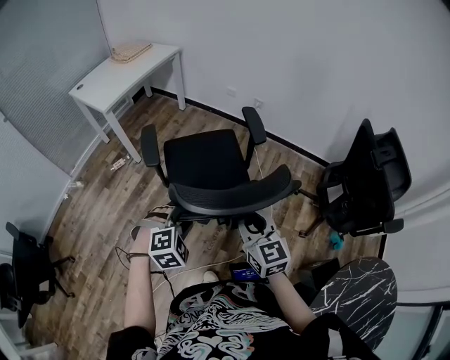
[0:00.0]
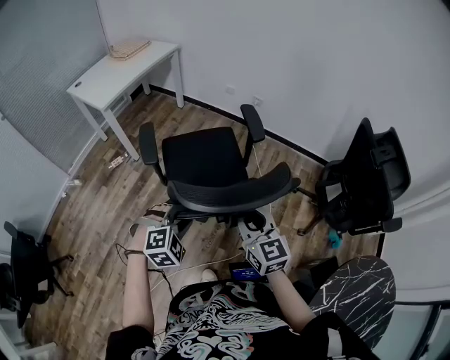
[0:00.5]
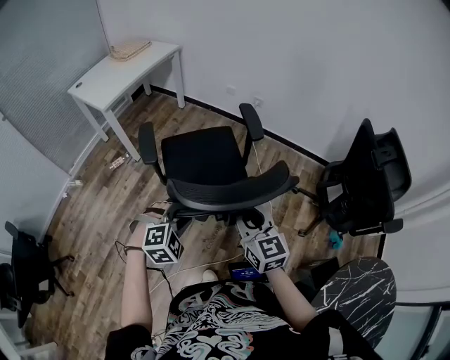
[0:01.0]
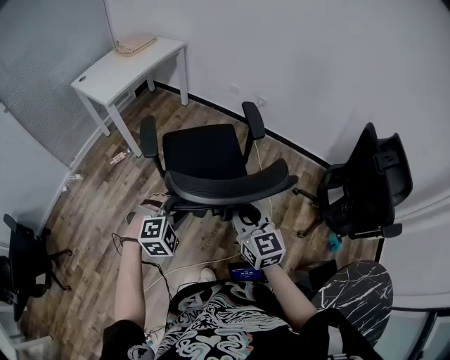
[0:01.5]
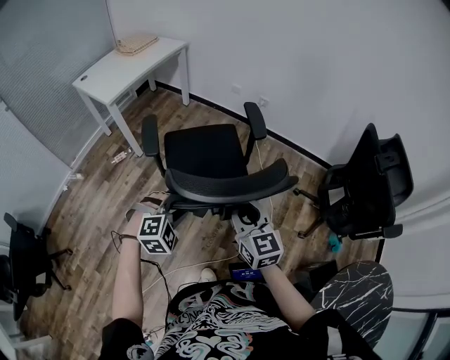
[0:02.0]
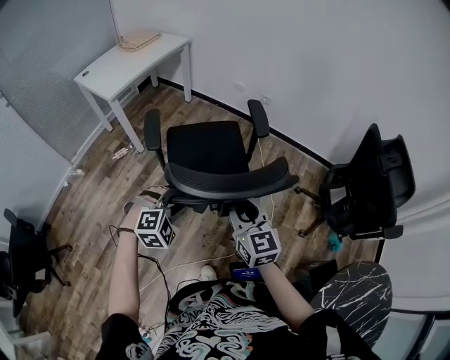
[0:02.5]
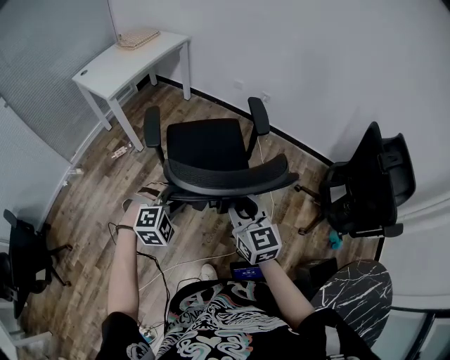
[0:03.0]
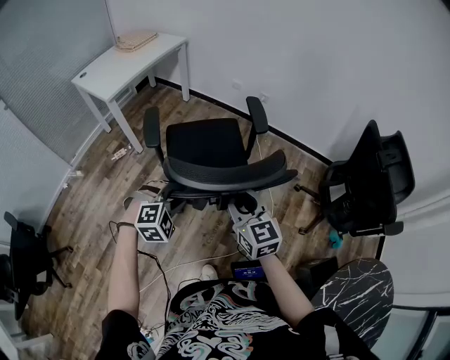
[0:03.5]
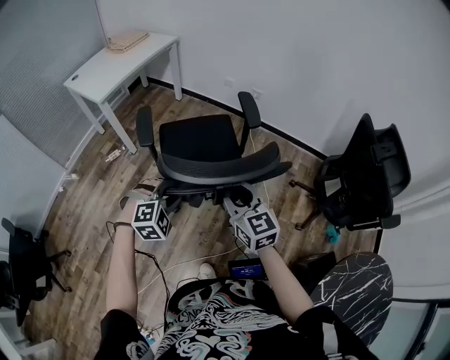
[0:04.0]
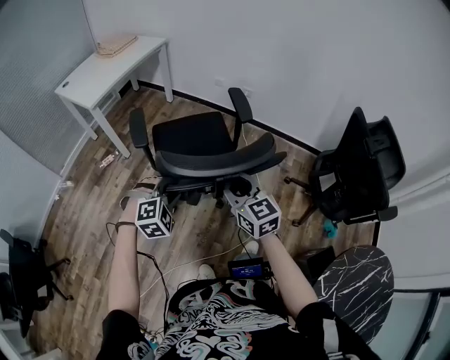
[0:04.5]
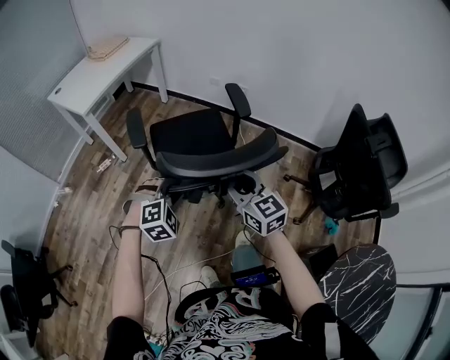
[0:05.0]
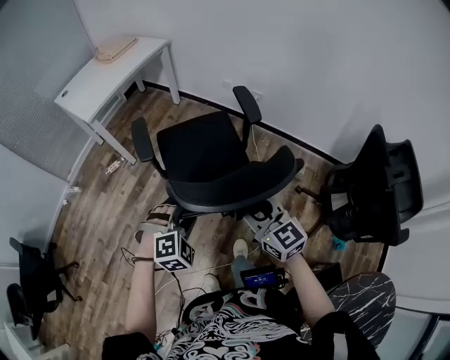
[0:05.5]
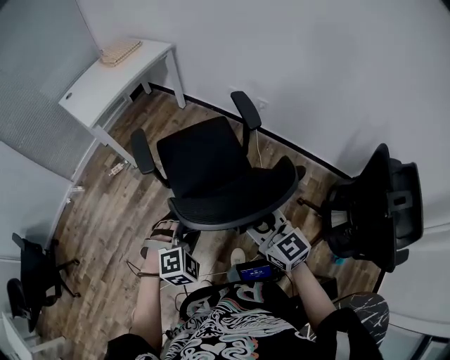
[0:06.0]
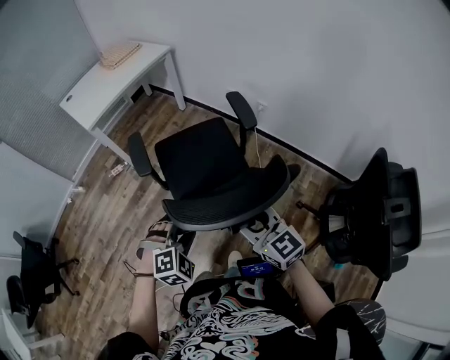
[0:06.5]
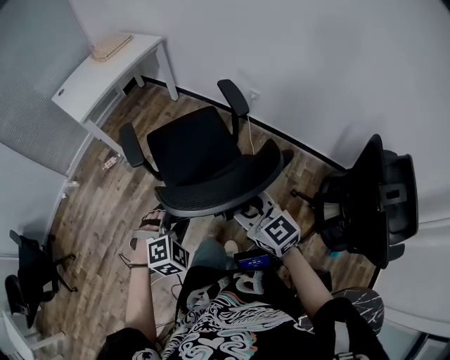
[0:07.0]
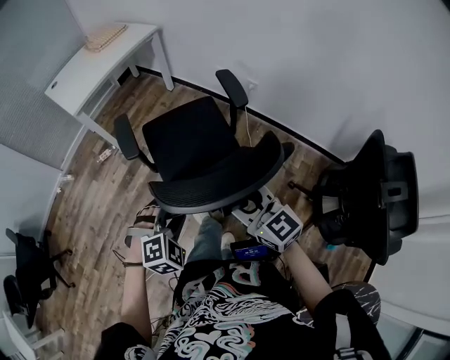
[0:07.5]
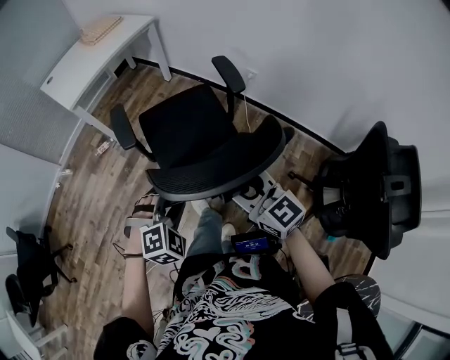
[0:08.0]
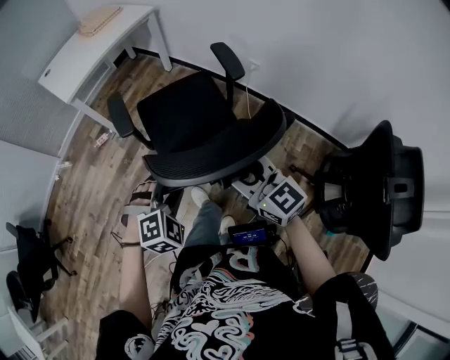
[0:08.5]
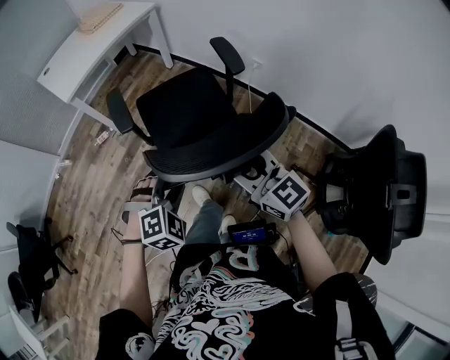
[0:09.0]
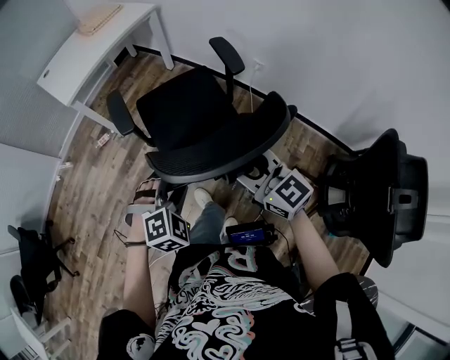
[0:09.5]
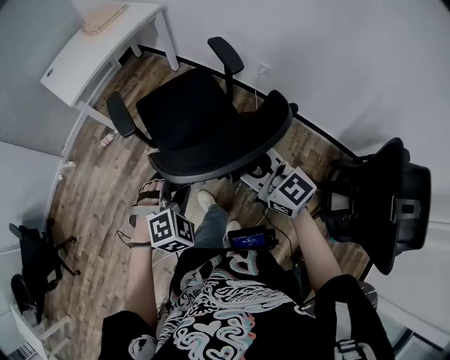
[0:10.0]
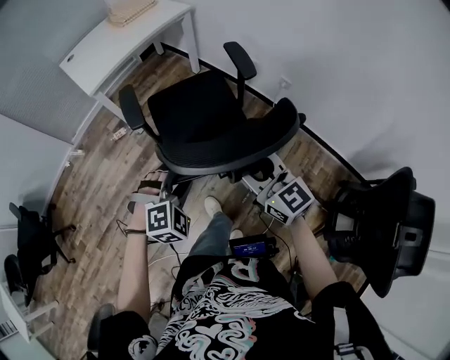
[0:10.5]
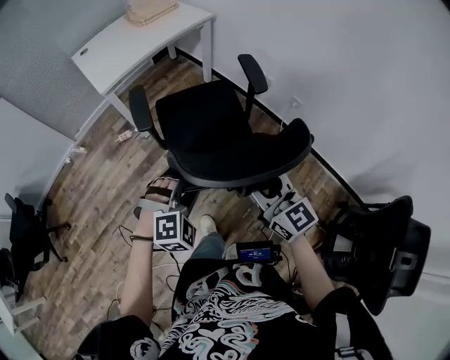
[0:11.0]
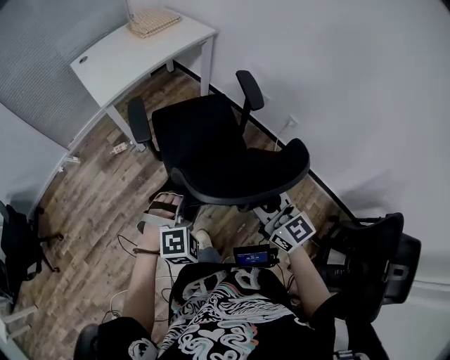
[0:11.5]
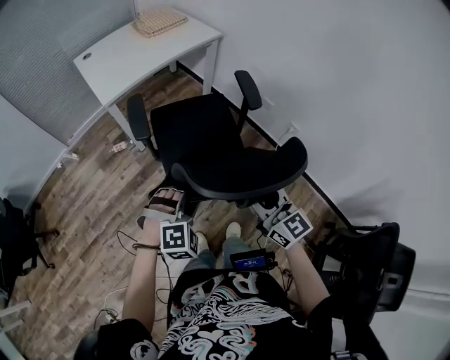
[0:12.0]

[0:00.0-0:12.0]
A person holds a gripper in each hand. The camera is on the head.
0:00.0 to 0:02.0: The grippers move only a little.
0:02.0 to 0:04.0: The grippers stay close to where they were, moving slightly.
0:04.0 to 0:06.0: The two grippers go roughly 15 cm to the right and forward.
0:06.0 to 0:08.0: The grippers move only a little.
0:08.0 to 0:10.0: The grippers both shift forward by some 10 cm.
0:10.0 to 0:12.0: The grippers both shift forward and to the left by approximately 15 cm.

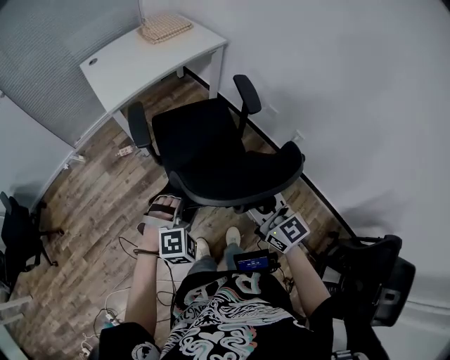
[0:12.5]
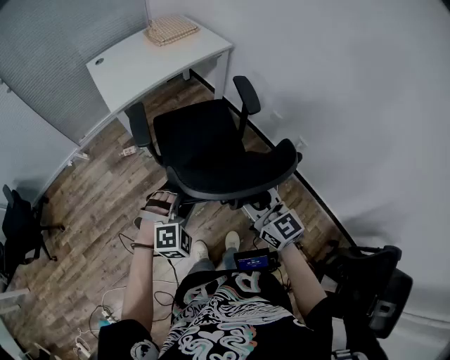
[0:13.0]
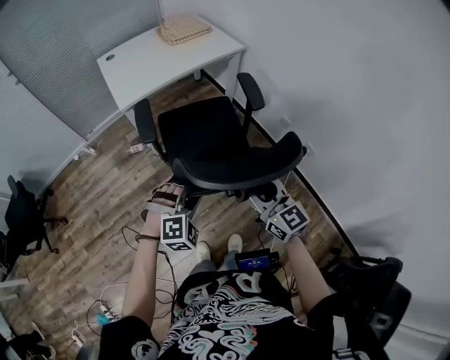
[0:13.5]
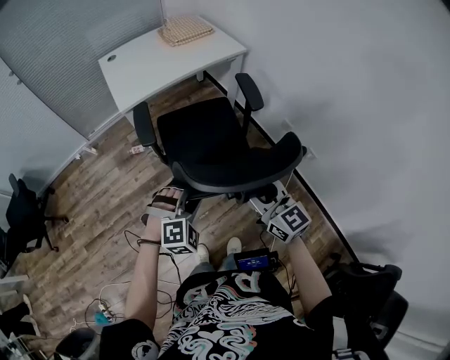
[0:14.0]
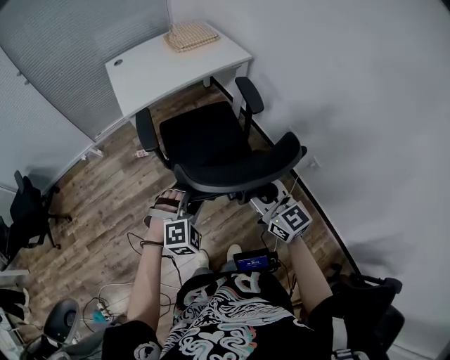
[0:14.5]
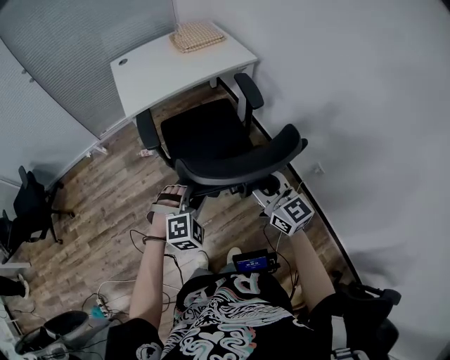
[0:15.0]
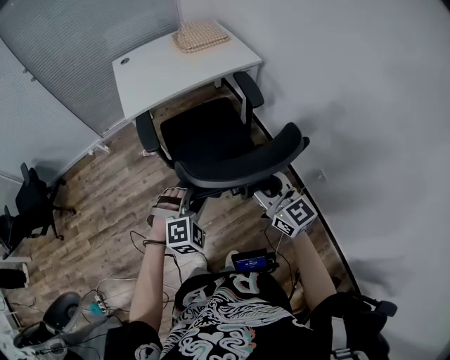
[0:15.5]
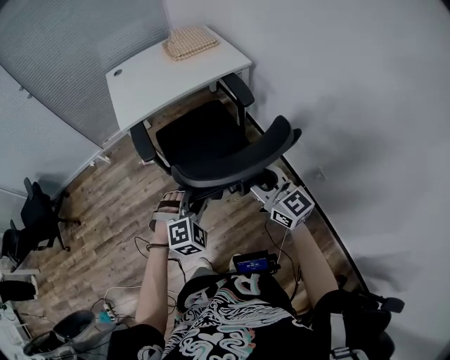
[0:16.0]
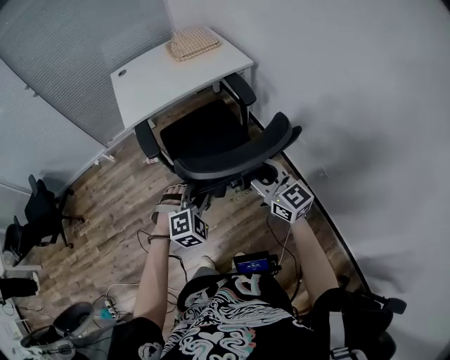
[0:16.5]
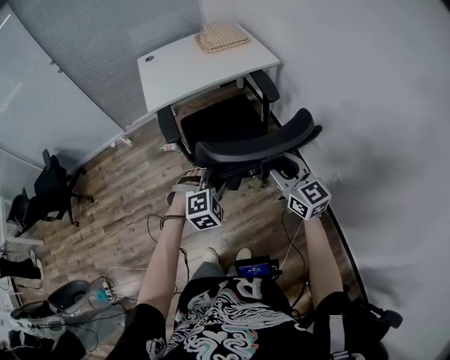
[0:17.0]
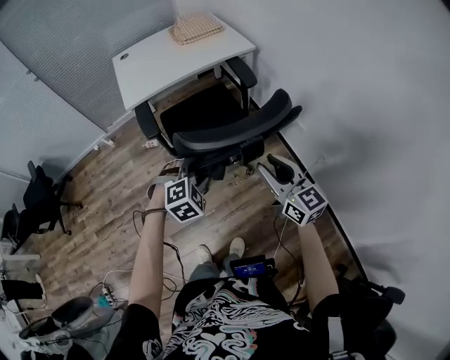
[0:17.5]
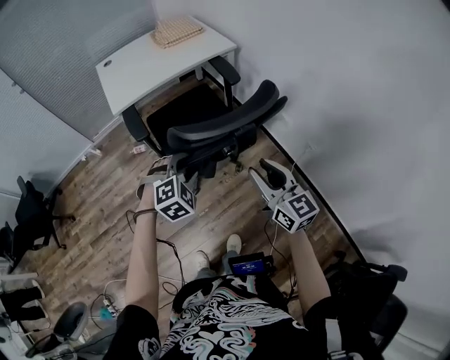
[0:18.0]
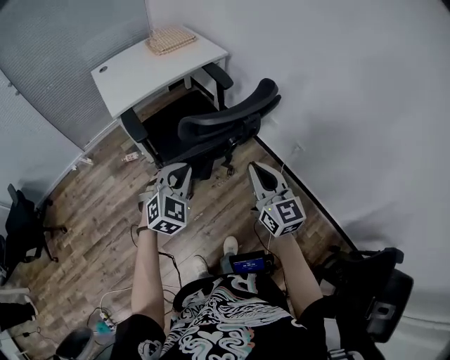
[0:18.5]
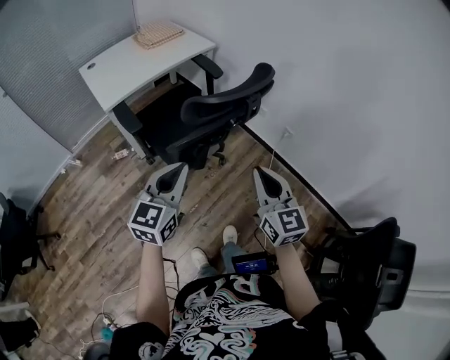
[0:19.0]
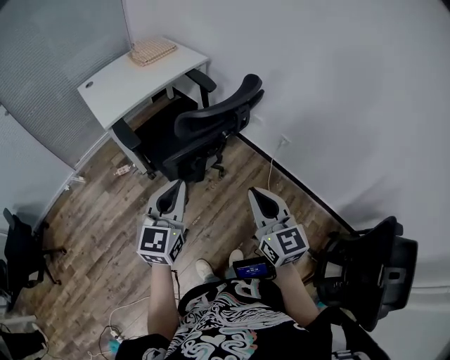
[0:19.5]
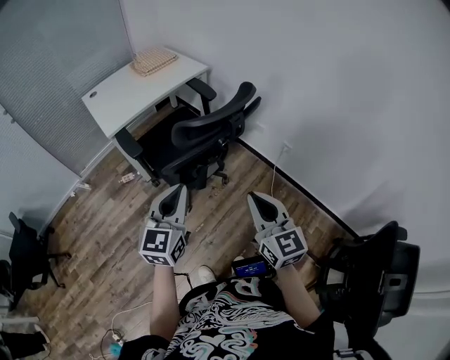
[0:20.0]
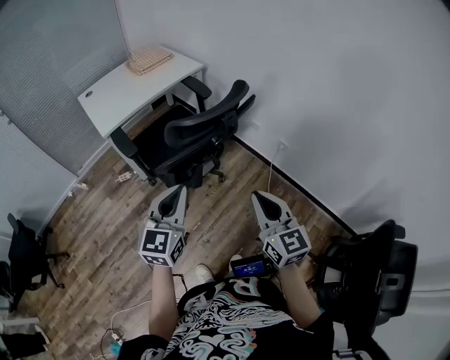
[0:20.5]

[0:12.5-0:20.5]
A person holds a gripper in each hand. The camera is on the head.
0:12.5 to 0:14.5: The grippers both shift forward by some 10 cm.
0:14.5 to 0:16.5: The right gripper is displaced forward and to the right by approximately 10 cm. The left gripper heads to the right and forward, covering approximately 10 cm.
0:16.5 to 0:18.5: The right gripper heads backward, covering some 15 cm, rotates about 30 degrees, and closes its fingers, while the left gripper heads upward, to the left and backward, covering some 15 cm, swivels some 30 degrees, and closes up.
0:18.5 to 0:20.5: The right gripper heads backward, covering roughly 10 cm, while the left gripper shifts about 10 cm backward and upward, and turns by approximately 40 degrees.

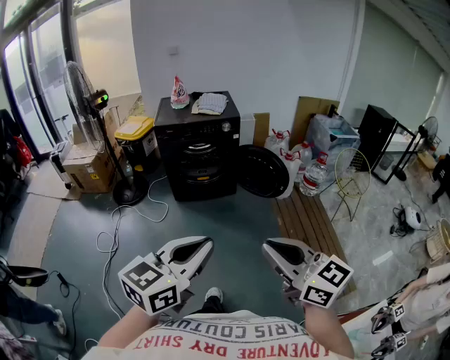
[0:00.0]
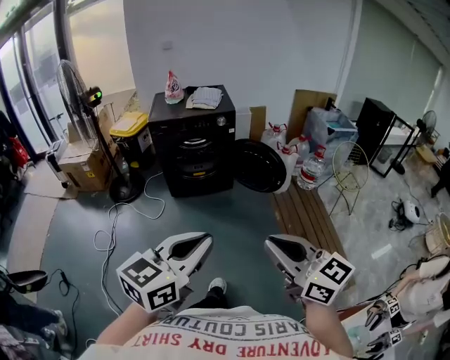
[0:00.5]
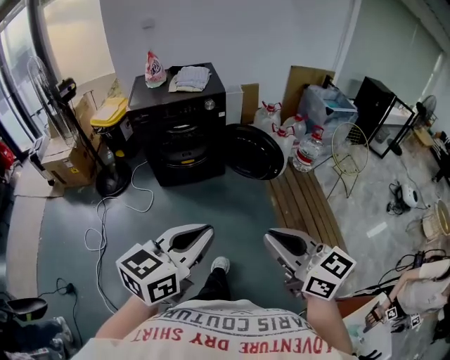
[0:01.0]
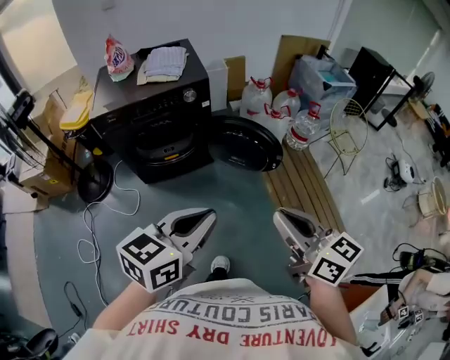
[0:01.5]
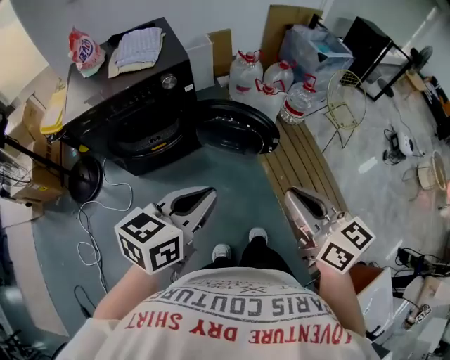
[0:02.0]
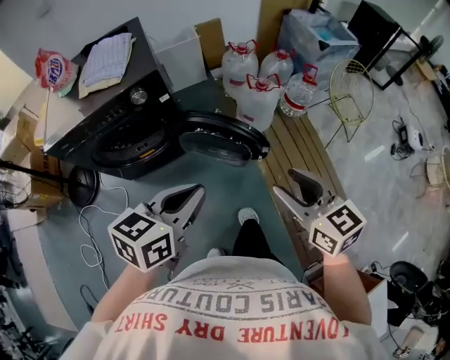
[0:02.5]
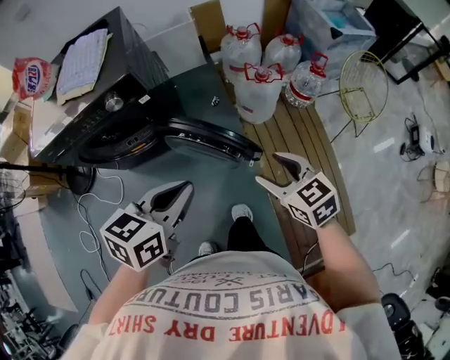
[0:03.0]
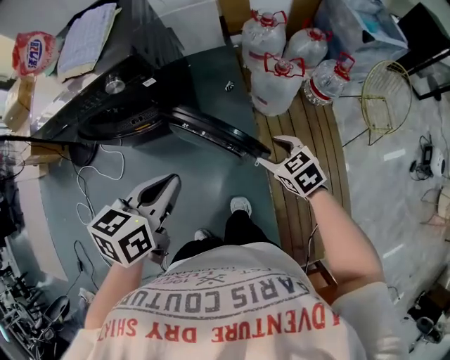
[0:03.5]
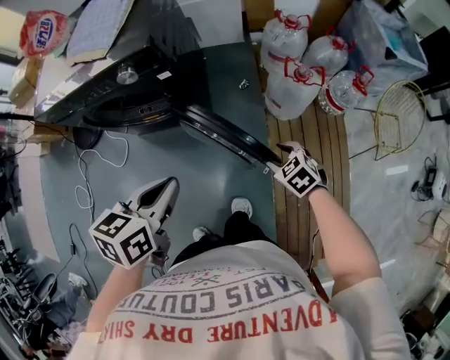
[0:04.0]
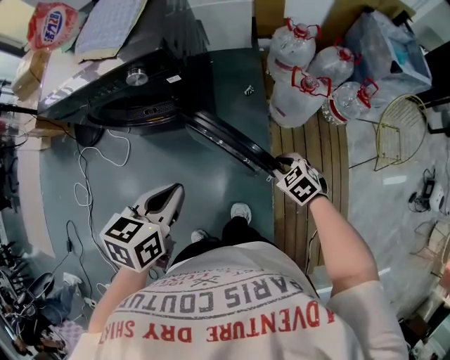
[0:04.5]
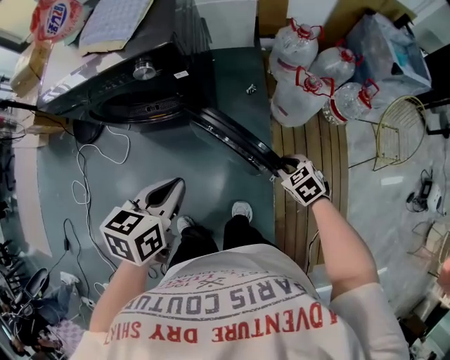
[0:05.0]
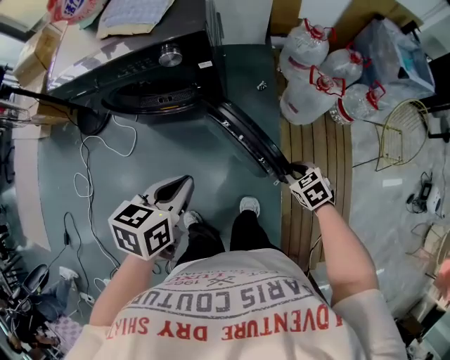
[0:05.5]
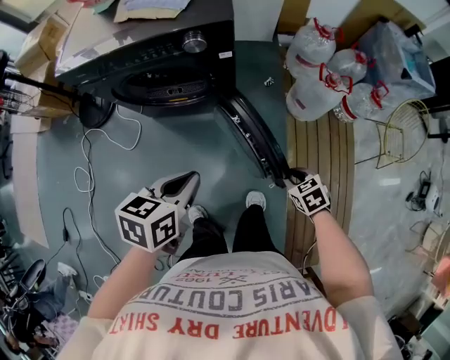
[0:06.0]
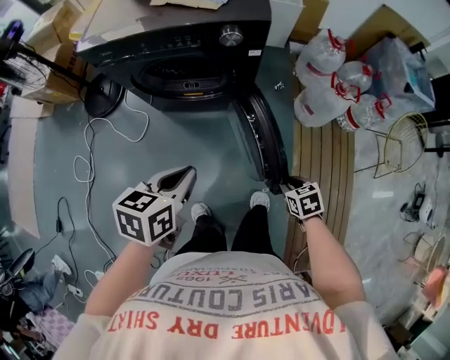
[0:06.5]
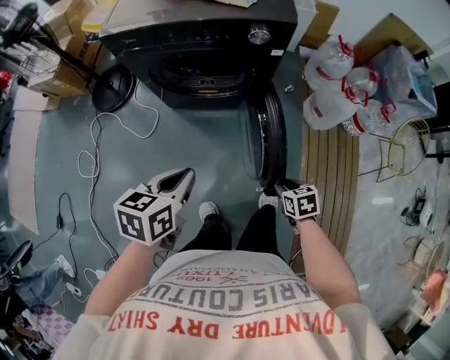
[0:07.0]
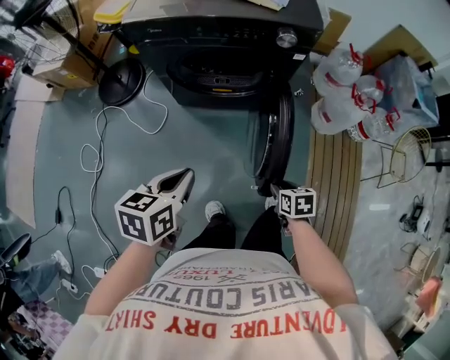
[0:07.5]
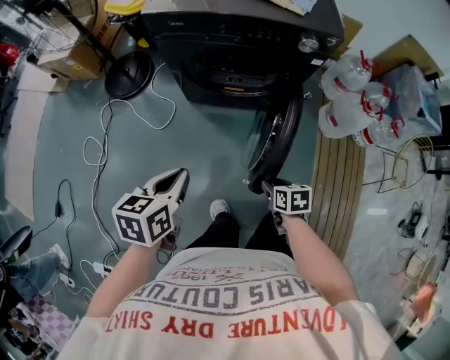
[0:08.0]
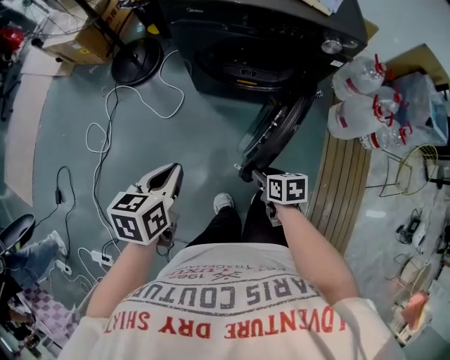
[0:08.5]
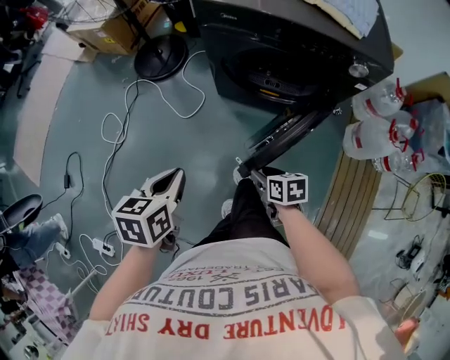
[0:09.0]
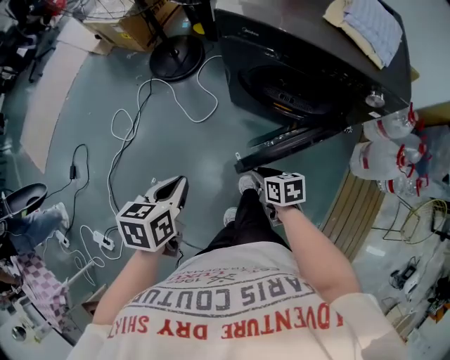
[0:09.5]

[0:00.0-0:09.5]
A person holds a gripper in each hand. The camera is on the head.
0:00.0 to 0:02.0: The two grippers travel together, forward, about 40 cm. The left gripper rotates approximately 20 degrees; the right gripper rotates about 30 degrees.
0:02.0 to 0:04.0: The right gripper goes approximately 35 cm downward, tilts its fingers about 50 degrees downward, and opens, while the left gripper shifts by roughly 25 cm, and turns by approximately 40 degrees.
0:04.0 to 0:05.5: The left gripper shifts approximately 10 cm to the left. The right gripper changes place by about 5 cm, and closes up.
0:05.5 to 0:07.5: The grippers both shift to the left by approximately 25 cm. The right gripper turns by approximately 30 degrees.
0:07.5 to 0:09.5: The left gripper changes place by approximately 20 cm, and swivels some 30 degrees; the right gripper moves some 30 cm, and changes its angle by about 30 degrees.
